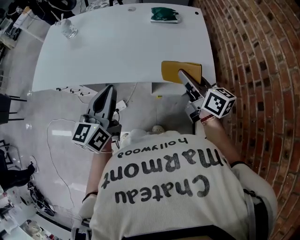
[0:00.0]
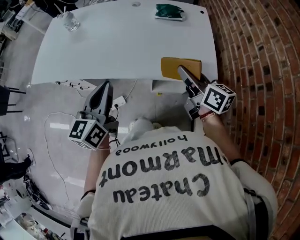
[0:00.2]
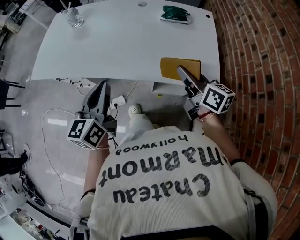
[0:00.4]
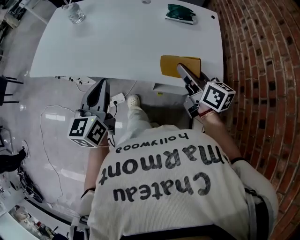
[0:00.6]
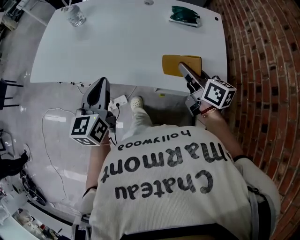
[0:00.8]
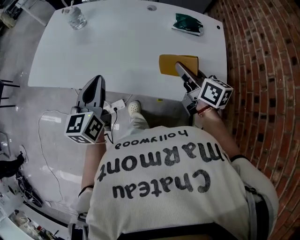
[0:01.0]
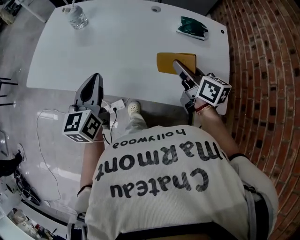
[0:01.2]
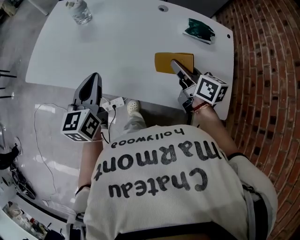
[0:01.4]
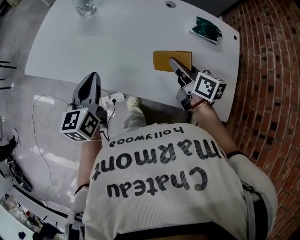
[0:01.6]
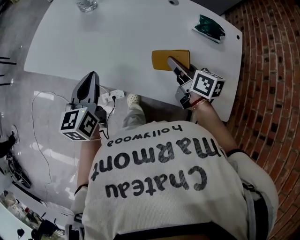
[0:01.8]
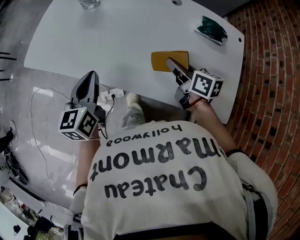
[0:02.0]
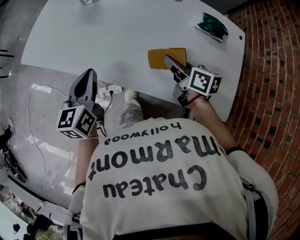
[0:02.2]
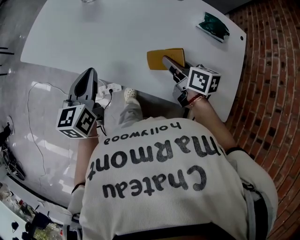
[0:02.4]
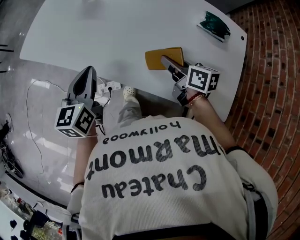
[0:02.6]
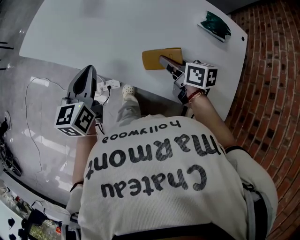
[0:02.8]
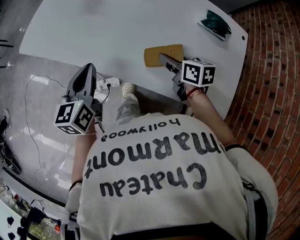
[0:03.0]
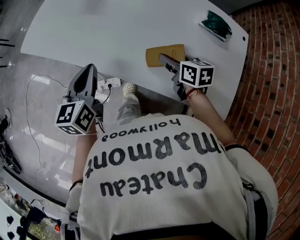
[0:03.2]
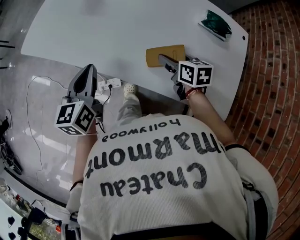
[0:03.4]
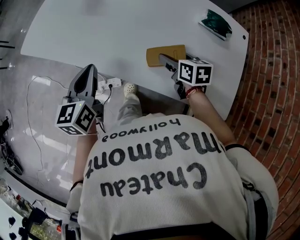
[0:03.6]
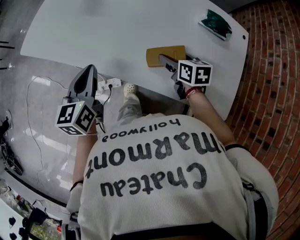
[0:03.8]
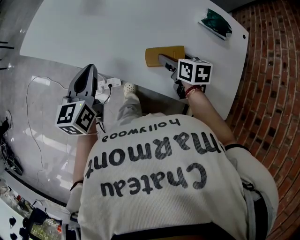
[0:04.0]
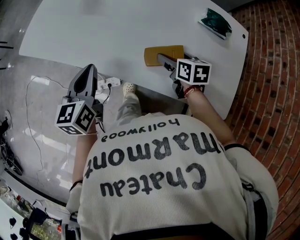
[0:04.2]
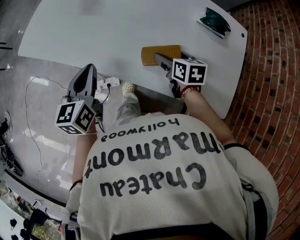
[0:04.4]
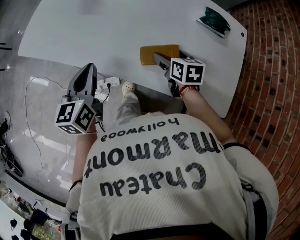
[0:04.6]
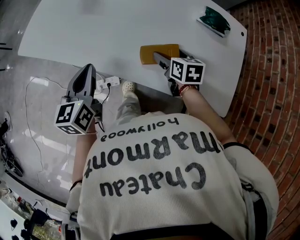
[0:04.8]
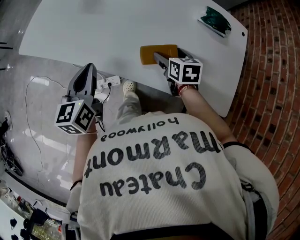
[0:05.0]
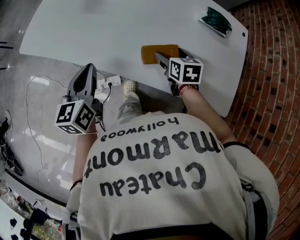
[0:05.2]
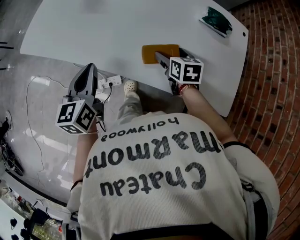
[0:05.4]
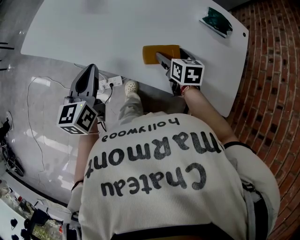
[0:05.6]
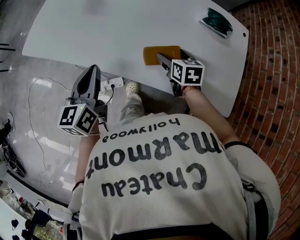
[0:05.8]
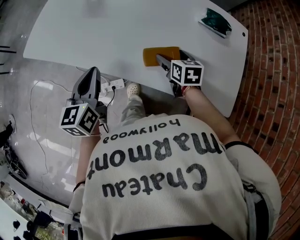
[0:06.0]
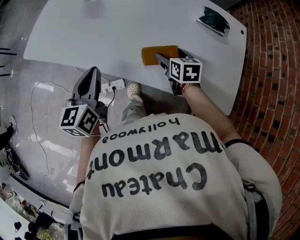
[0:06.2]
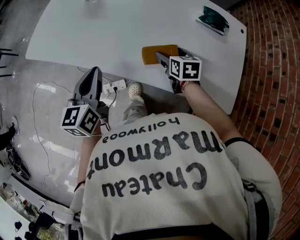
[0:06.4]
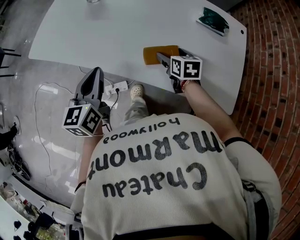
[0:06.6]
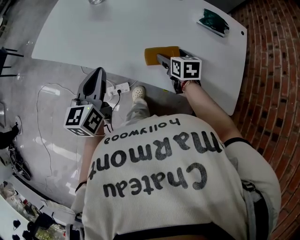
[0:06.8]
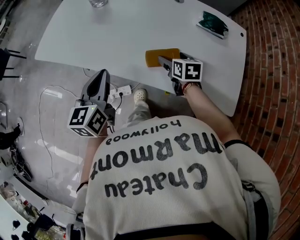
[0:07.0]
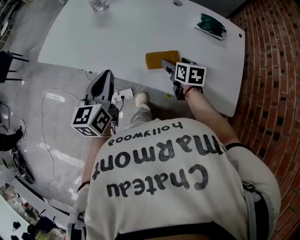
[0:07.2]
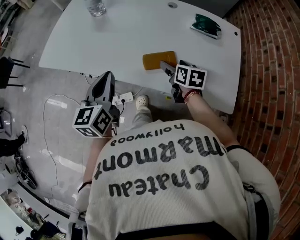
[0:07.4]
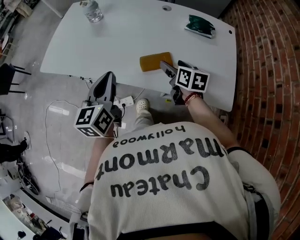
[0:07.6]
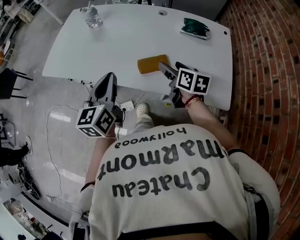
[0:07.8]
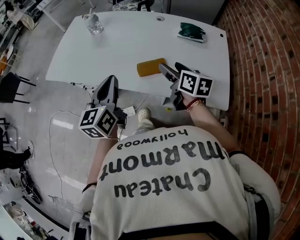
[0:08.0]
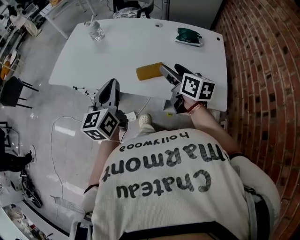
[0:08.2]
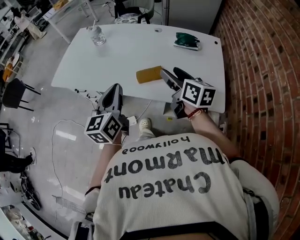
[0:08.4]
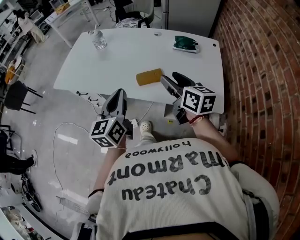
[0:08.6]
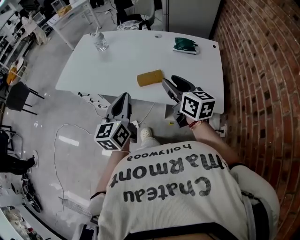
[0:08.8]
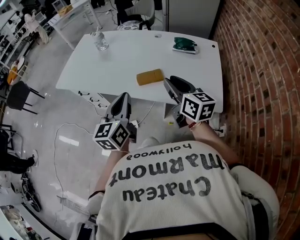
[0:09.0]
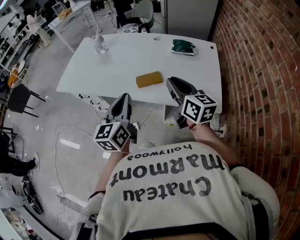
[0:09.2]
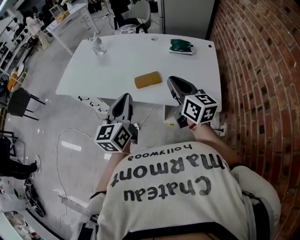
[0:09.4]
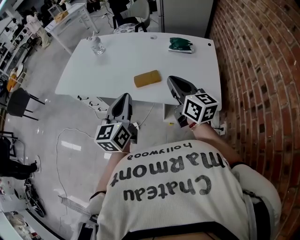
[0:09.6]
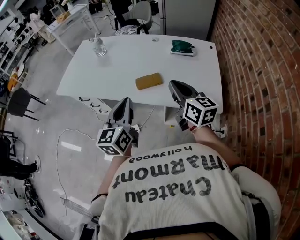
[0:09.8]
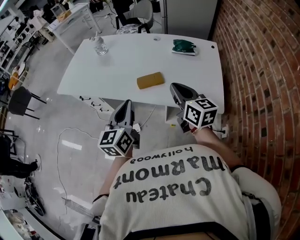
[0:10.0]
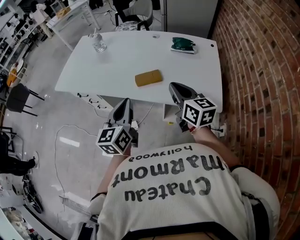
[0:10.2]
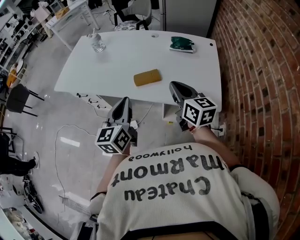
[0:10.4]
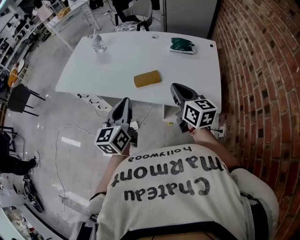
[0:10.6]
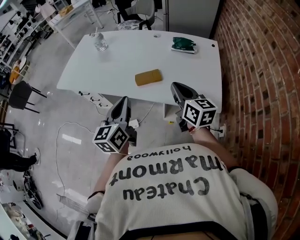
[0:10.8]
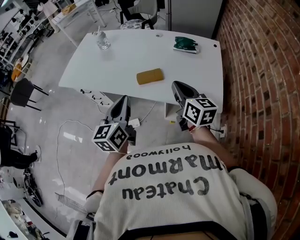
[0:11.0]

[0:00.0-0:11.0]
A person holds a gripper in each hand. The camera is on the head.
0:00.0 to 0:01.6: The right gripper moves forward and to the left, about 25 cm. The left gripper travels forward, to the left and downward by roughly 25 cm, and swivels approximately 20 degrees.
0:01.6 to 0:03.2: The right gripper goes approximately 10 cm downward, and changes its angle by some 20 degrees.
0:03.2 to 0:04.8: The right gripper opens up.
0:04.8 to 0:06.2: The grippers move only a little.
0:06.2 to 0:07.8: The right gripper heads upward and backward, covering some 15 cm, and changes its angle by some 20 degrees, while the left gripper moves upward and to the right, approximately 10 cm.
0:07.8 to 0:09.4: The right gripper travels upward and backward by roughly 20 cm, swivels roughly 30 degrees, and closes up. Meanwhile the left gripper is displaced backward and to the right by roughly 15 cm.
0:09.4 to 0:11.0: The grippers make only small movements.

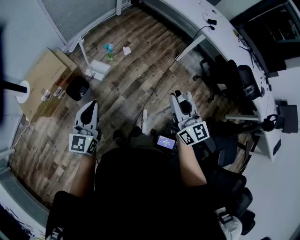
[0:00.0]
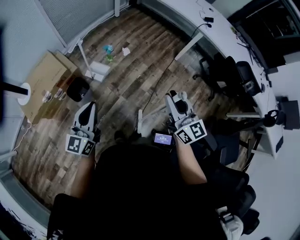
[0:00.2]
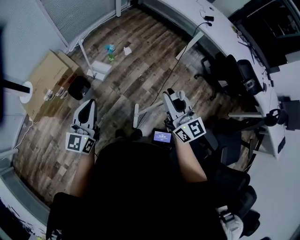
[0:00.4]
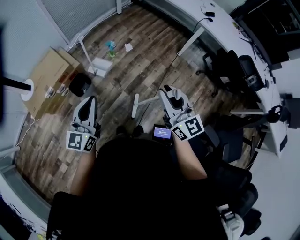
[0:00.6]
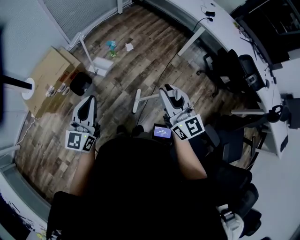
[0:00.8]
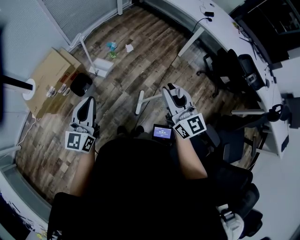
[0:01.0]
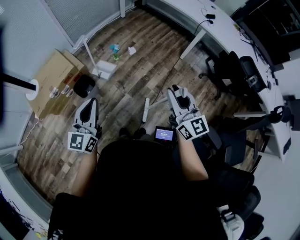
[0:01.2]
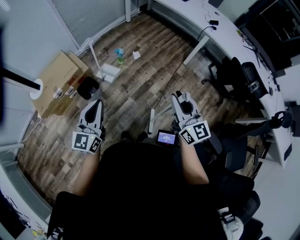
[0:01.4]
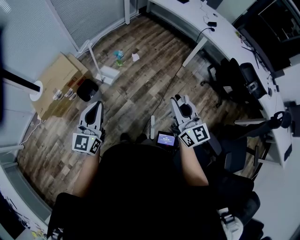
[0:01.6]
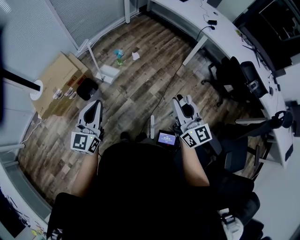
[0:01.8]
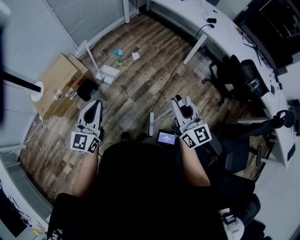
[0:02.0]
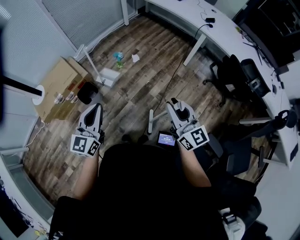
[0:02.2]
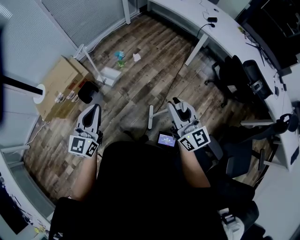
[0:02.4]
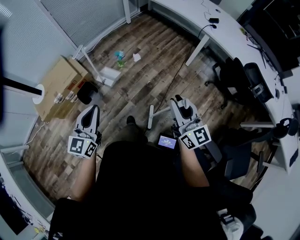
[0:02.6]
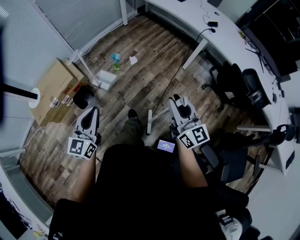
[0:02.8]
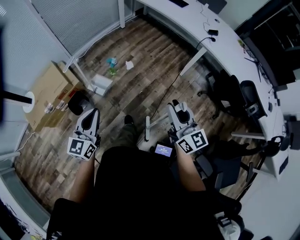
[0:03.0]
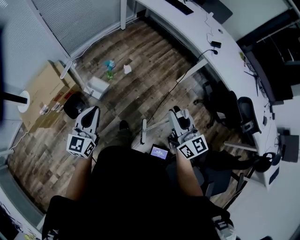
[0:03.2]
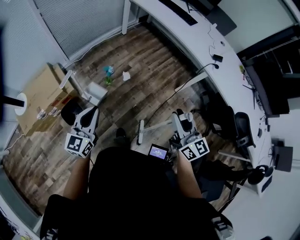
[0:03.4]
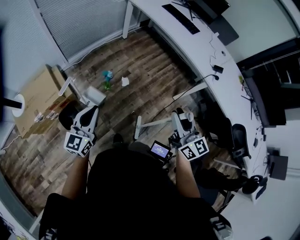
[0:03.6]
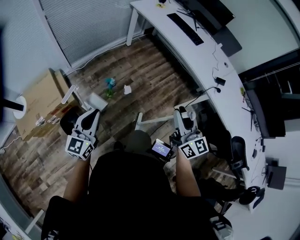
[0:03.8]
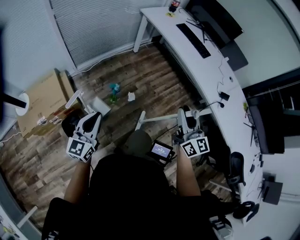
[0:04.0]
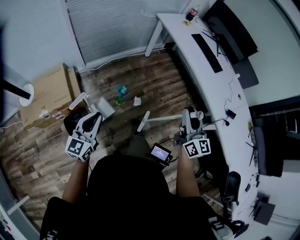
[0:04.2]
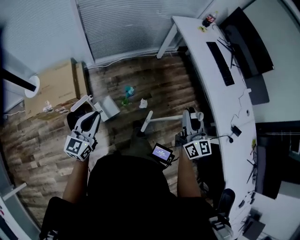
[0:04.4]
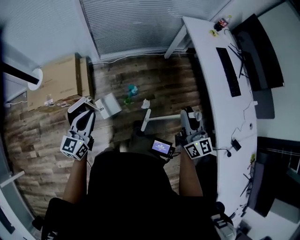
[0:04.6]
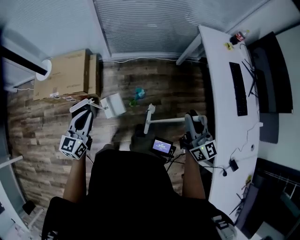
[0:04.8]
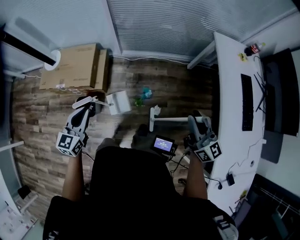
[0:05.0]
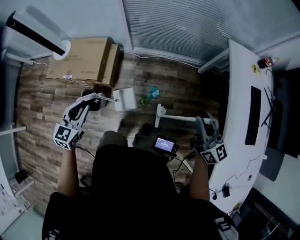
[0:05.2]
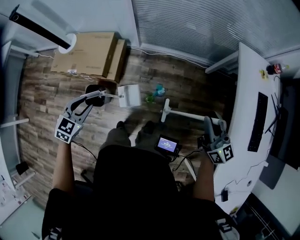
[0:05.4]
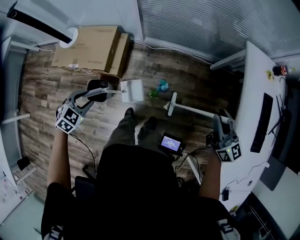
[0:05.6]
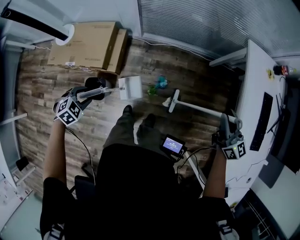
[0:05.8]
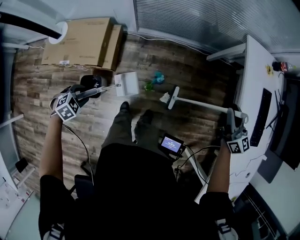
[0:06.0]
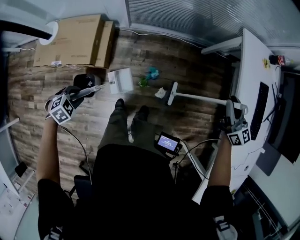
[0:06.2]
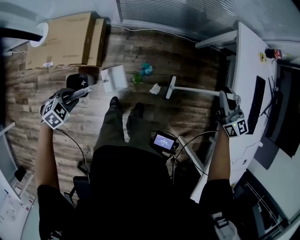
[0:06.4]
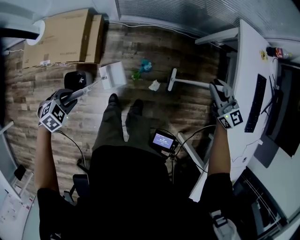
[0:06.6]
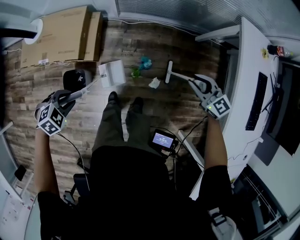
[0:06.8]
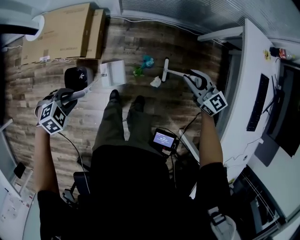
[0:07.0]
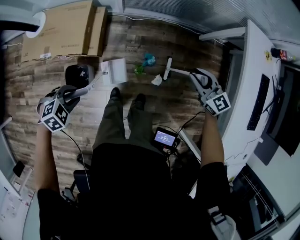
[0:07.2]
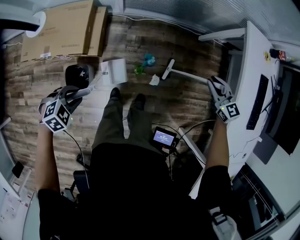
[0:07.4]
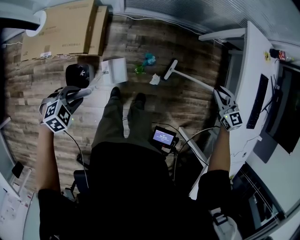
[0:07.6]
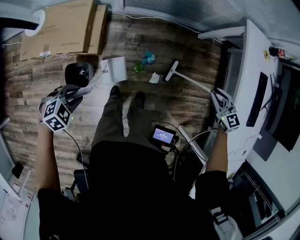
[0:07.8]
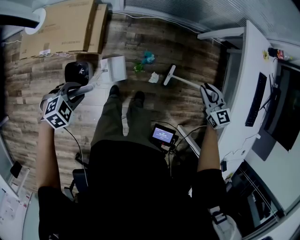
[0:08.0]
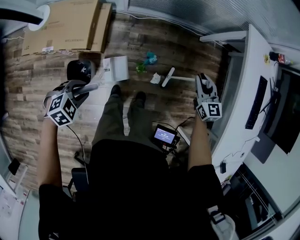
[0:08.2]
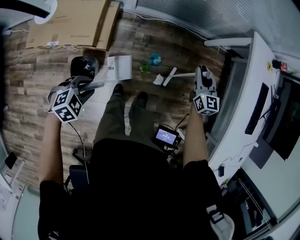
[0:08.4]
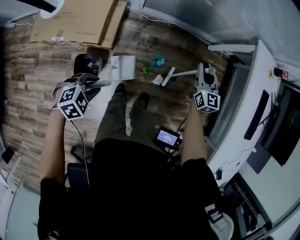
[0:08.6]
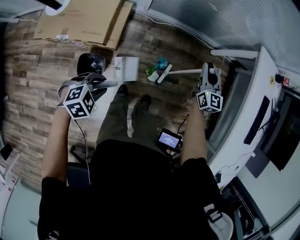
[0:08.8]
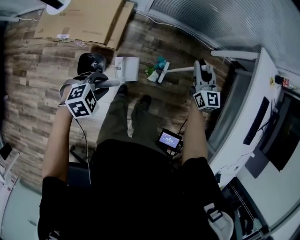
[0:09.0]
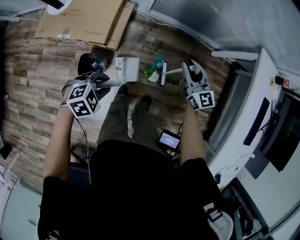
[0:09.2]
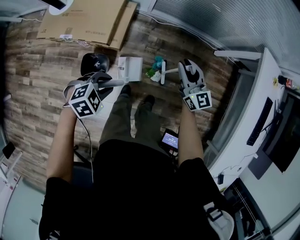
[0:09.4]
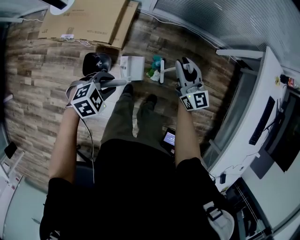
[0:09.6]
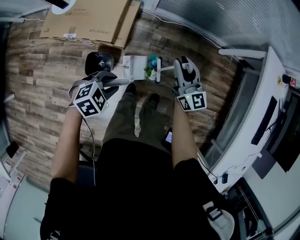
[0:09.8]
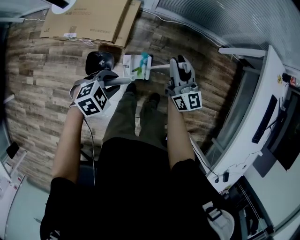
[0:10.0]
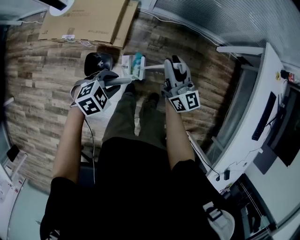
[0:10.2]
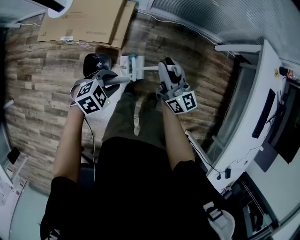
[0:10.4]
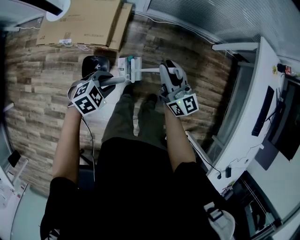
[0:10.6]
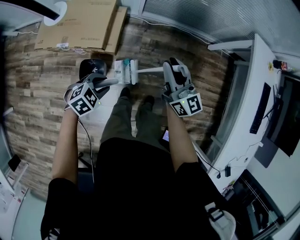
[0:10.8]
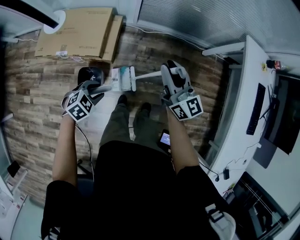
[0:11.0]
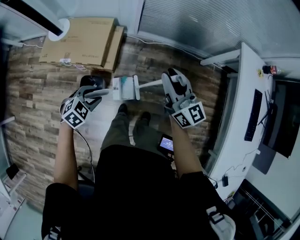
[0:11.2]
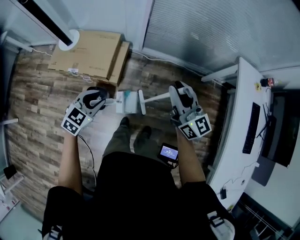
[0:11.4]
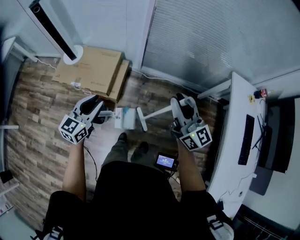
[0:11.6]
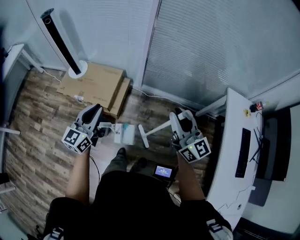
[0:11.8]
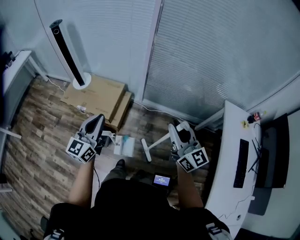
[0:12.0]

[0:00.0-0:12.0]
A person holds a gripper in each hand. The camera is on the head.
0:00.0 to 0:01.6: Both grippers move backward, approximately 5 cm.
0:01.6 to 0:03.0: The grippers both shift forward and to the right by about 15 cm.
0:03.0 to 0:04.4: The two grippers go roughly 40 cm forward. The left gripper rotates about 20 degrees.
0:04.4 to 0:06.0: The left gripper moves downward, approximately 20 cm, tips its fingers downward by approximately 70 degrees, and opens its fingers. Meanwhile the right gripper shifts by roughly 35 cm, and turns by roughly 40 degrees.
0:06.0 to 0:07.6: The right gripper goes about 15 cm downward, and angles its fingers downward, by some 30 degrees.
0:07.6 to 0:09.0: The right gripper is displaced to the left by roughly 25 cm, and changes its angle by some 30 degrees.
0:09.0 to 0:10.4: The right gripper is displaced backward and to the left by about 15 cm, and rotates approximately 30 degrees.
0:10.4 to 0:12.0: Both grippers move upward, some 30 cm. The left gripper tilts its fingers some 60 degrees upward, and closes its fingers.

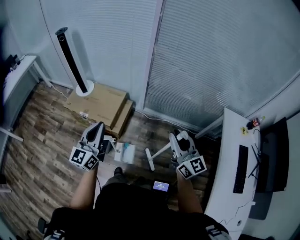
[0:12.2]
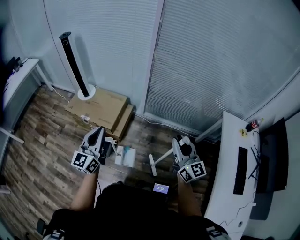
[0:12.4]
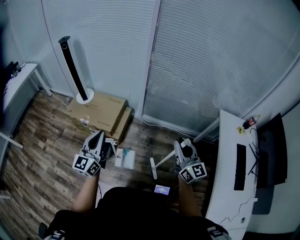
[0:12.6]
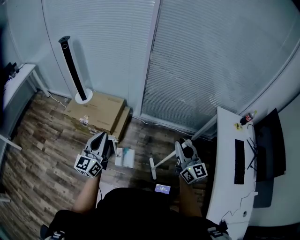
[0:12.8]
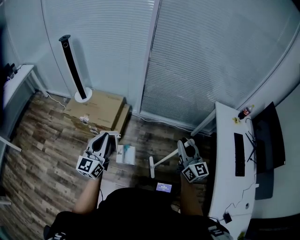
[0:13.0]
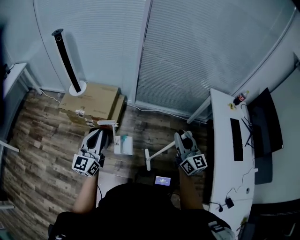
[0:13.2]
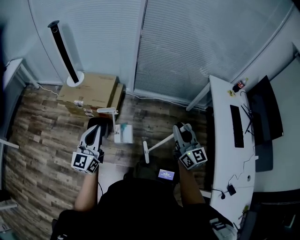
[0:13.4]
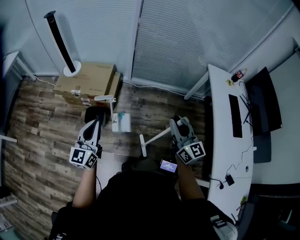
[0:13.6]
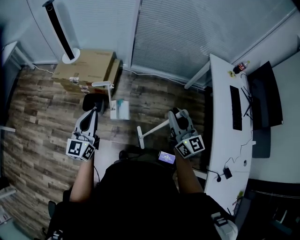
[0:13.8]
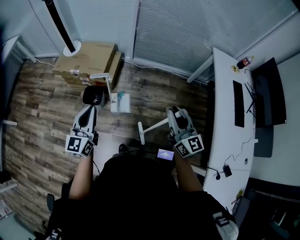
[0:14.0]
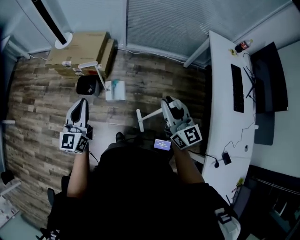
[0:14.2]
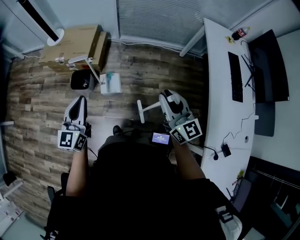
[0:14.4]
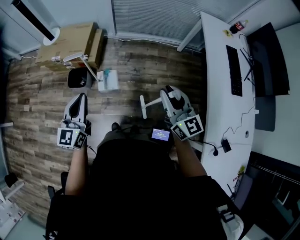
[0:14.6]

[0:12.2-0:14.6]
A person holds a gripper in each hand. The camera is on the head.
0:12.2 to 0:13.4: Both grippers travel together backward, about 20 cm.
0:13.4 to 0:14.6: The left gripper heads to the right, backward and downward, covering roughly 15 cm; the right gripper is displaced backward, to the right and downward by about 15 cm.
